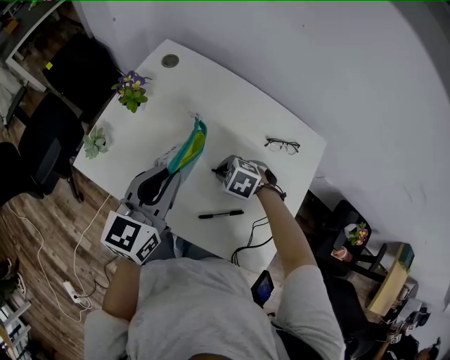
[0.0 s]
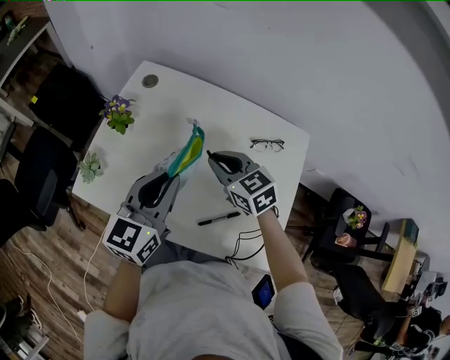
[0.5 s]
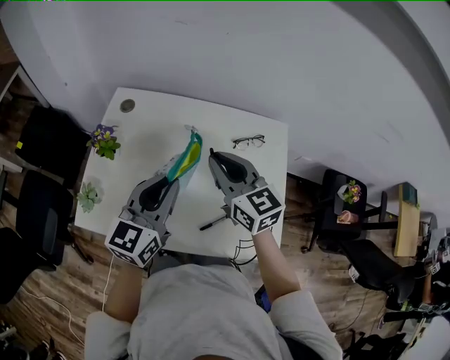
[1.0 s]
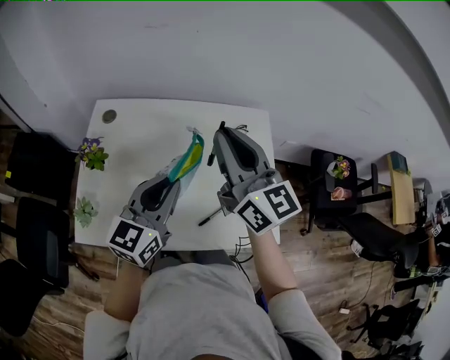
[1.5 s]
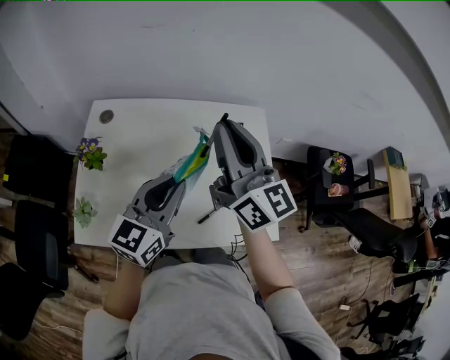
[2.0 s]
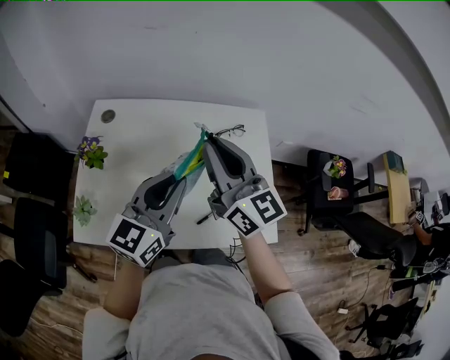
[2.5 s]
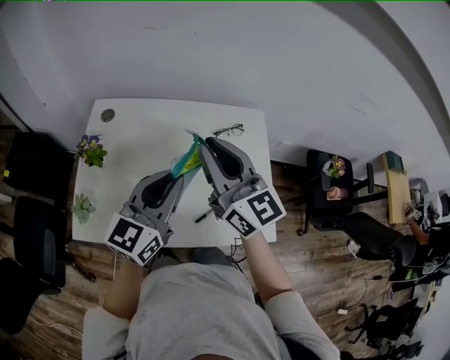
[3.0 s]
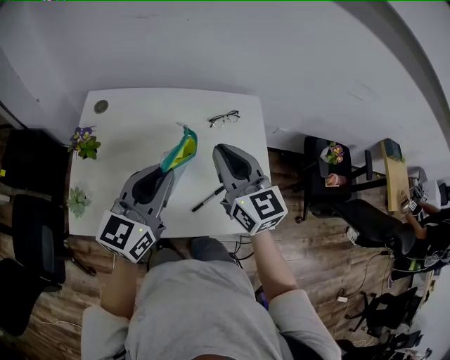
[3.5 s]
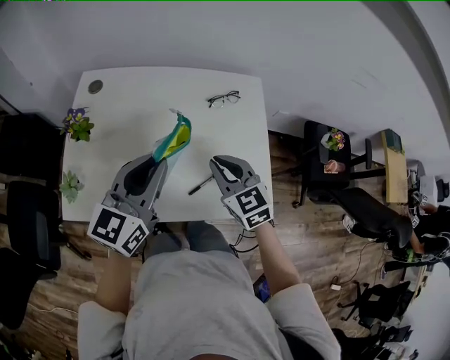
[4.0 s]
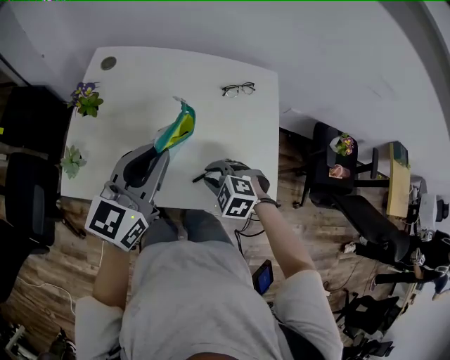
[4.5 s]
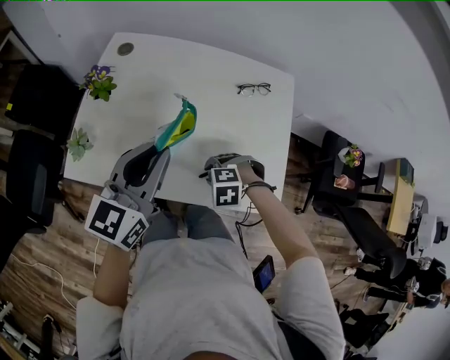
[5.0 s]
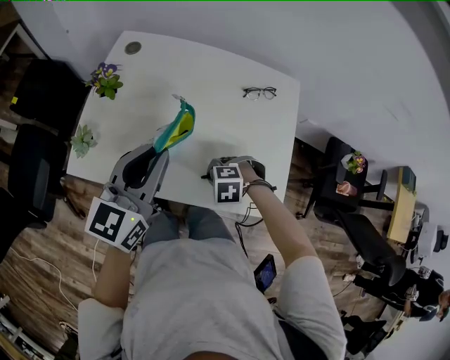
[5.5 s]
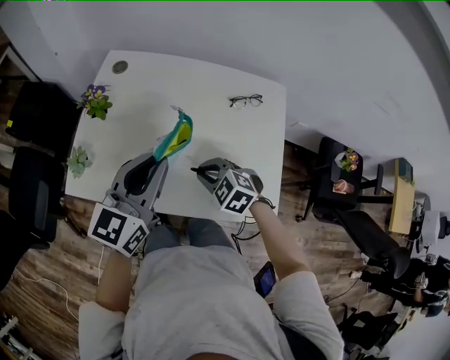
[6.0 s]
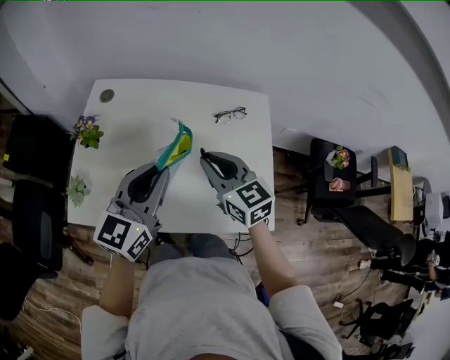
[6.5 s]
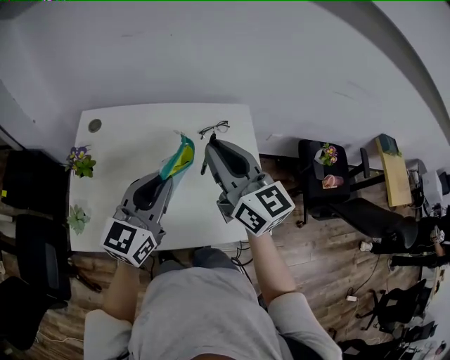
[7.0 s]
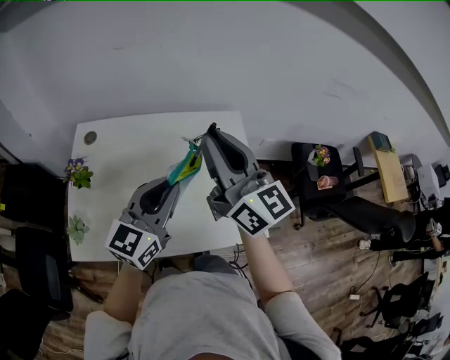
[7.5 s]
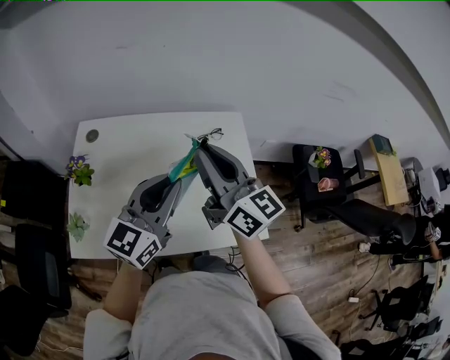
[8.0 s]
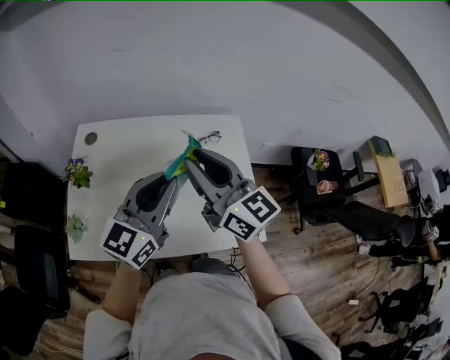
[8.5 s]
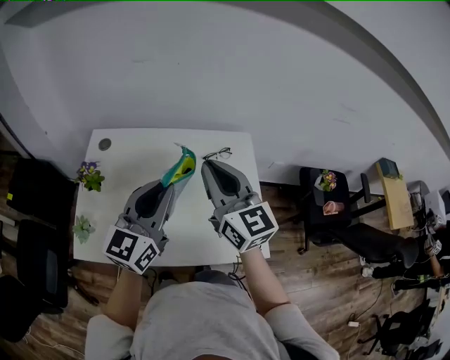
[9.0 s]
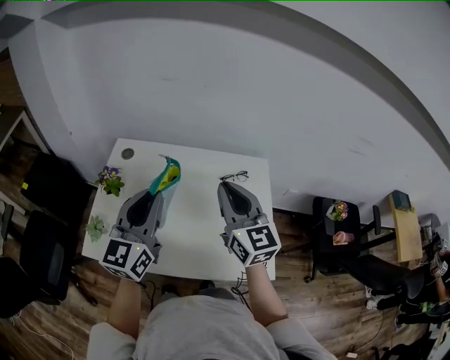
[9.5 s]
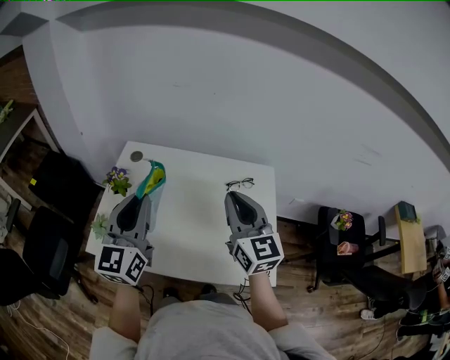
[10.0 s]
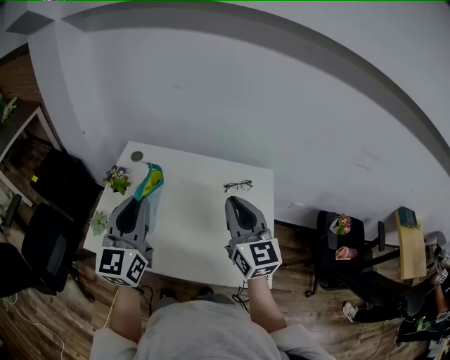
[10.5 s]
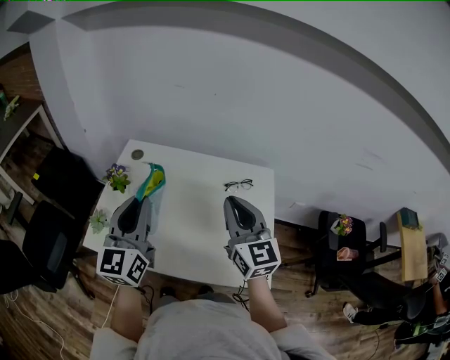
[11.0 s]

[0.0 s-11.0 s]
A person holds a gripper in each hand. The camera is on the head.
0.0 to 2.0 s: The right gripper goes approximately 40 cm upward, and points its fingers about 90 degrees further upward, while the left gripper moves upward, about 5 cm, and turns by approximately 30 degrees.
2.0 to 3.5 s: The right gripper is displaced downward by roughly 10 cm, and rotates about 20 degrees.
3.5 to 5.5 s: The right gripper is displaced downward by some 30 cm, and tilts its fingers about 70 degrees downward. The left gripper shifts by about 5 cm.
5.5 to 7.5 s: The left gripper ends up some 10 cm from where it was, and swivels roughly 20 degrees; the right gripper is displaced upward by roughly 40 cm, and tips its fingers upward by approximately 90 degrees.
7.5 to 9.0 s: The right gripper heads downward, covering approximately 5 cm.
9.0 to 11.0 s: The left gripper shifts approximately 10 cm to the left, and swivels roughly 30 degrees.

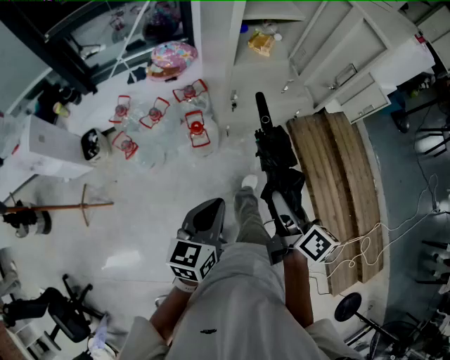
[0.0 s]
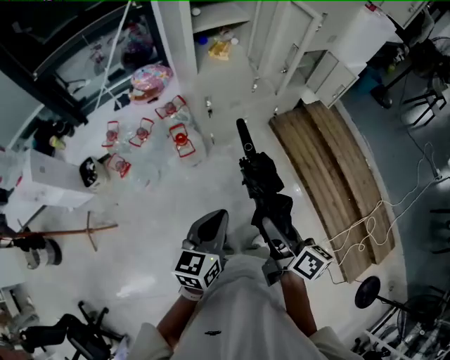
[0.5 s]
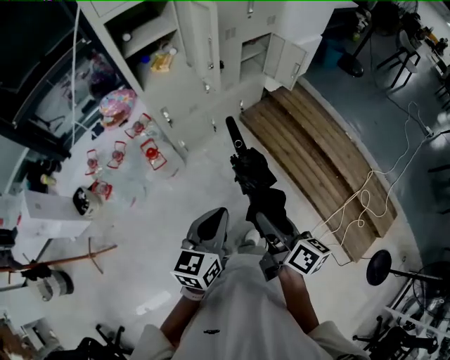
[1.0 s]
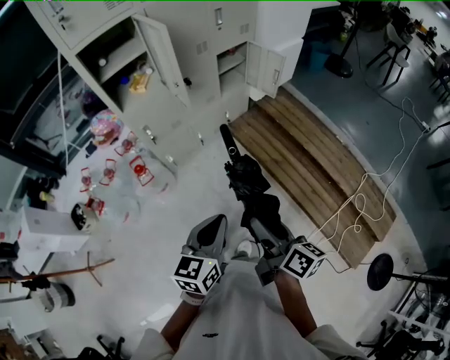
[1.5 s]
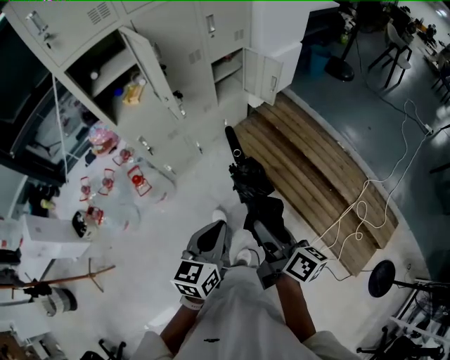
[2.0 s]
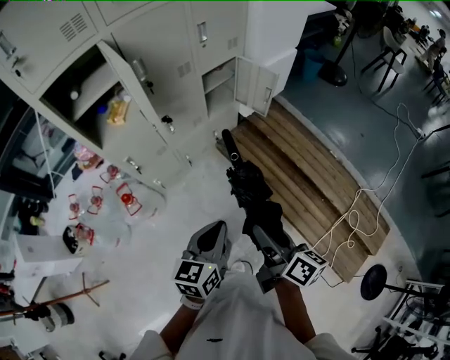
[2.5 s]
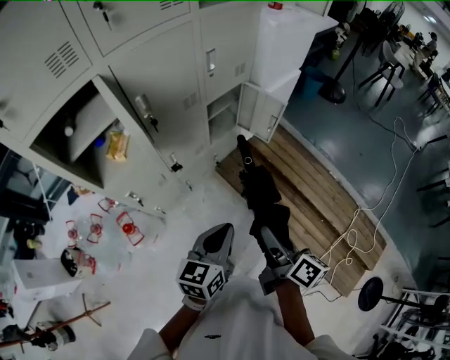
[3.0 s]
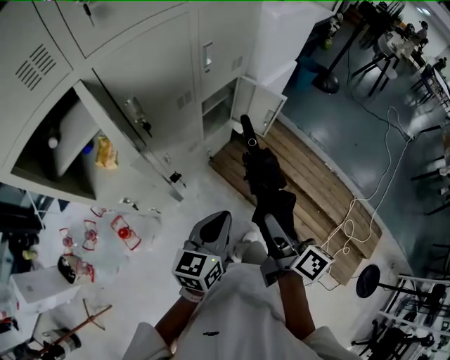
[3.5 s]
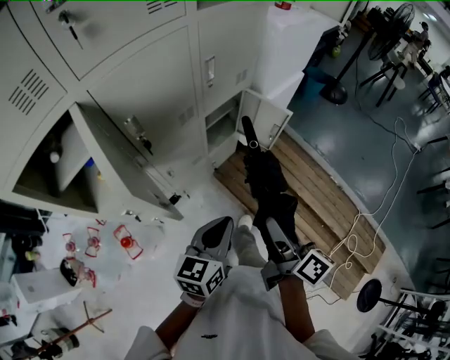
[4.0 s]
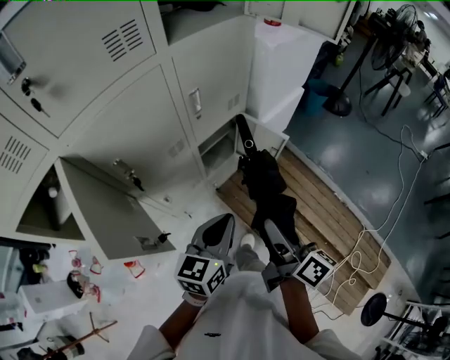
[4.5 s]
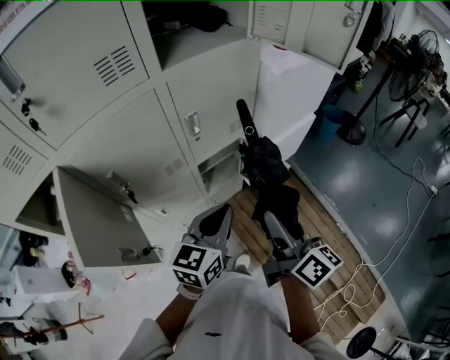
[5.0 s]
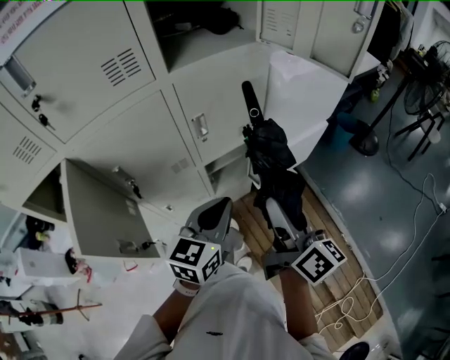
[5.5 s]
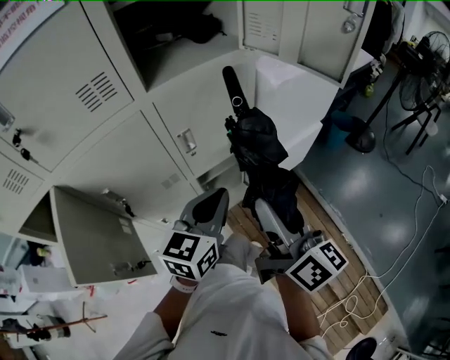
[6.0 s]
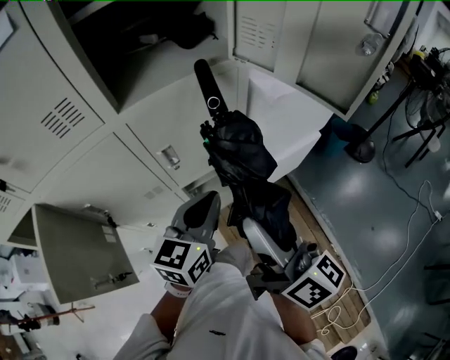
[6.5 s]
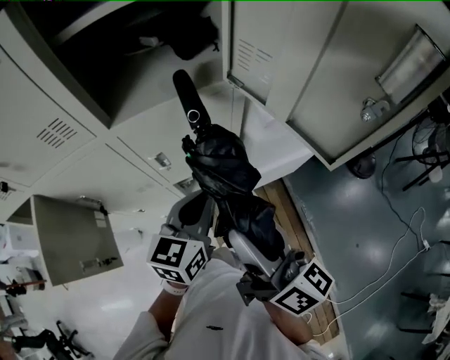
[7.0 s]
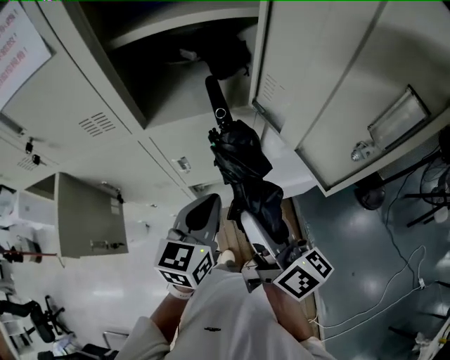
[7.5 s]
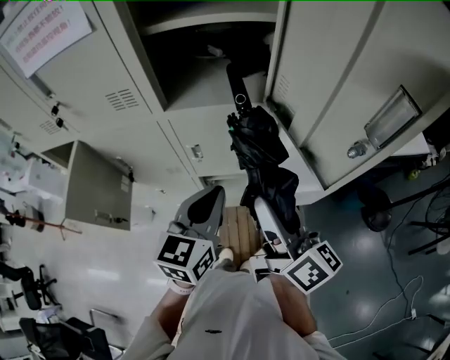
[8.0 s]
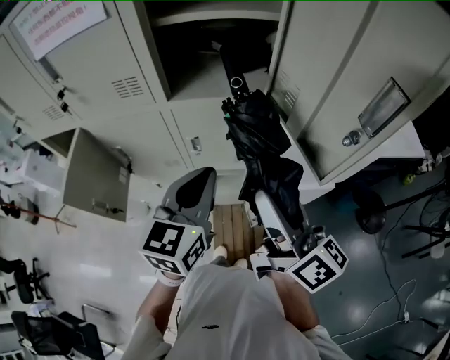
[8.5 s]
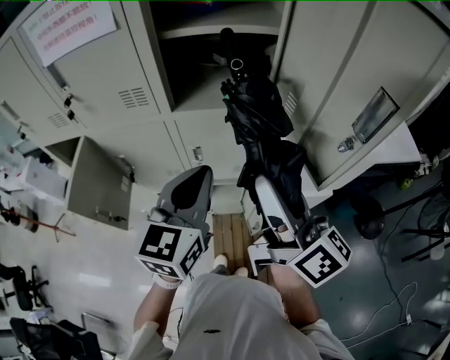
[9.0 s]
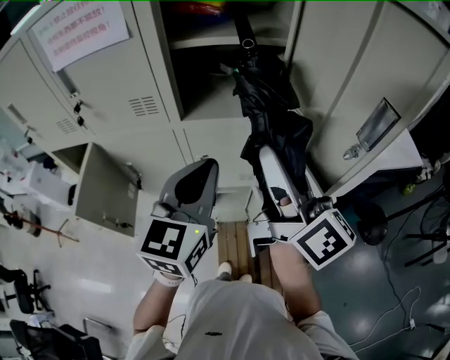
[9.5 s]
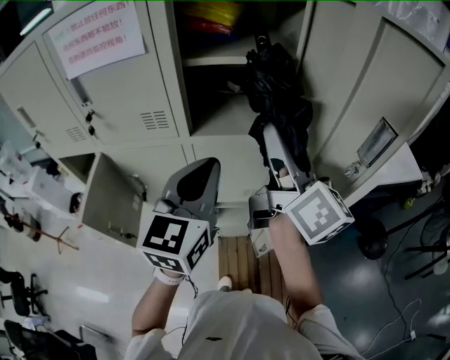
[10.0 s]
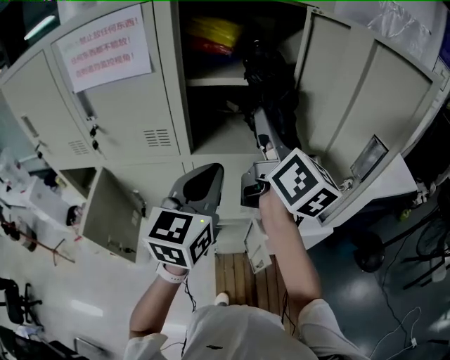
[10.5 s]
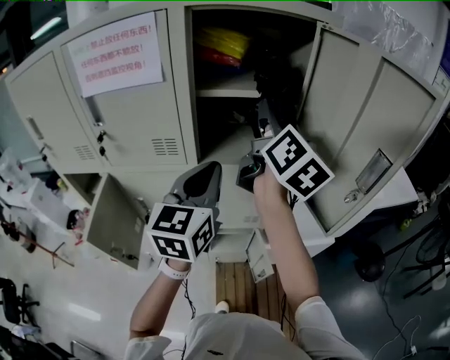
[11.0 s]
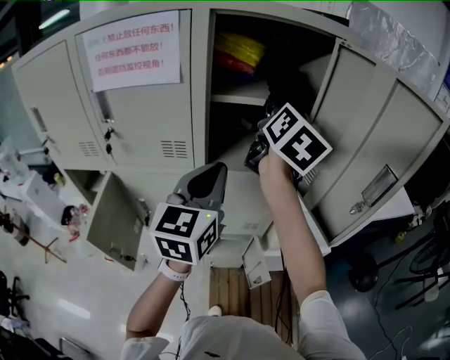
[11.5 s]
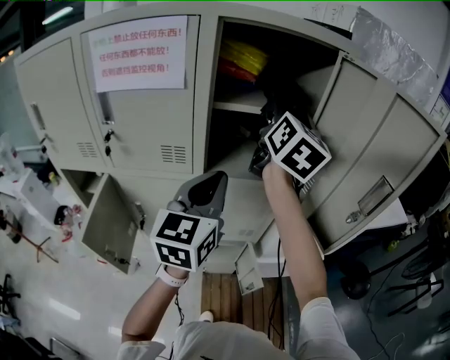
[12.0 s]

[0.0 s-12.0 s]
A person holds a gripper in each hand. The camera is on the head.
0.0 to 2.0 s: Both grippers travel together to the right, approximately 35 cm.
2.0 to 4.0 s: The grippers both shift forward by some 35 cm.
4.0 to 6.0 s: The grippers both shift forward and upward by some 30 cm. The right gripper changes its angle by approximately 30 degrees.
6.0 to 8.0 s: The left gripper is displaced upward by about 10 cm, and rotates approximately 30 degrees; the right gripper ends up about 20 cm from where it was, and swivels approximately 30 degrees.
8.0 to 10.0 s: The right gripper heads upward and forward, covering roughly 20 cm, while the left gripper shifts approximately 15 cm upward.
10.0 to 12.0 s: The right gripper goes about 15 cm forward and upward, and swivels roughly 30 degrees, while the left gripper ends up about 5 cm from where it was.

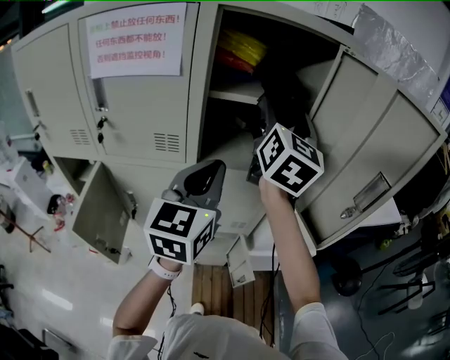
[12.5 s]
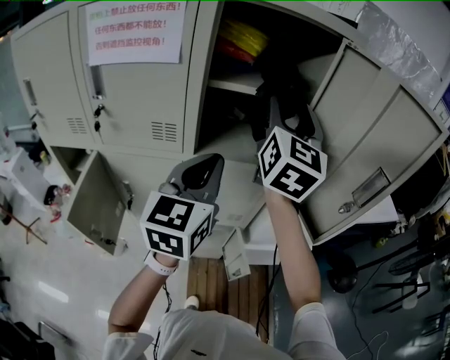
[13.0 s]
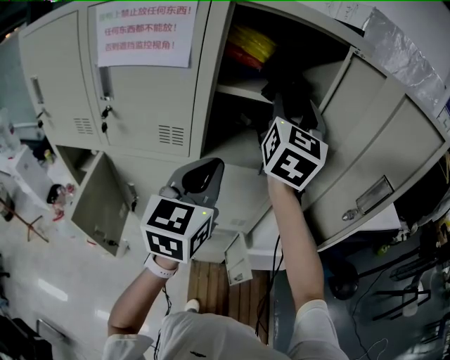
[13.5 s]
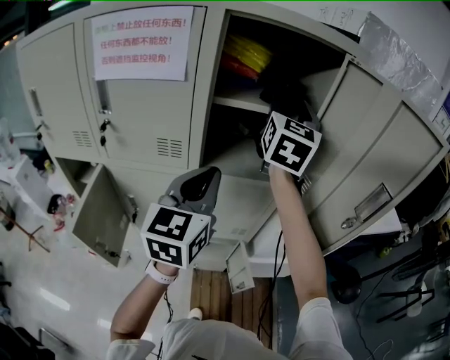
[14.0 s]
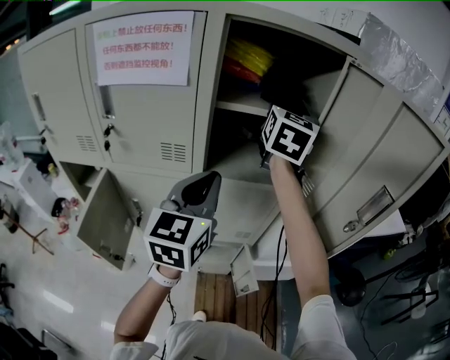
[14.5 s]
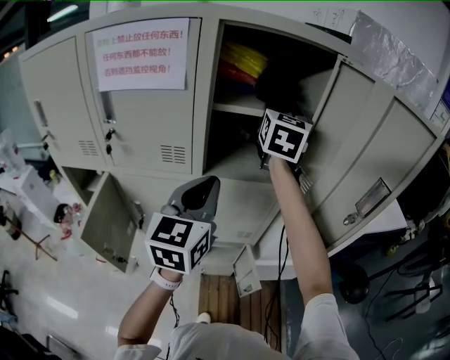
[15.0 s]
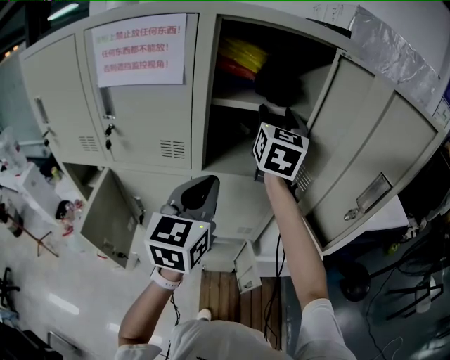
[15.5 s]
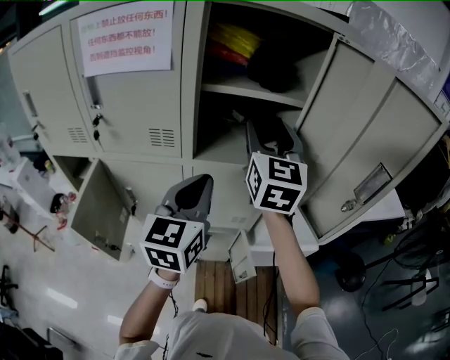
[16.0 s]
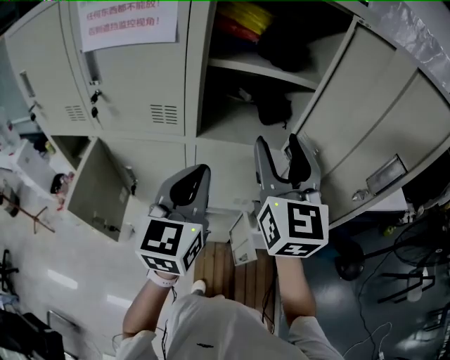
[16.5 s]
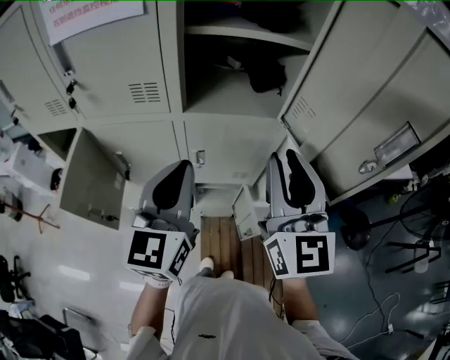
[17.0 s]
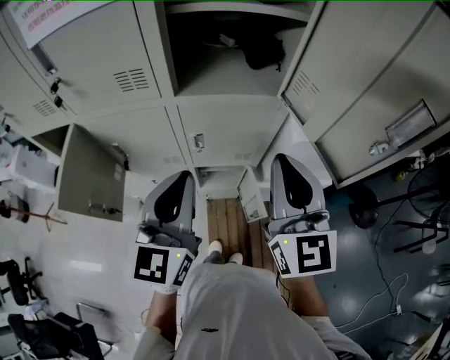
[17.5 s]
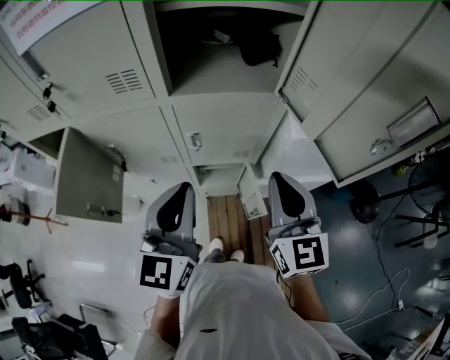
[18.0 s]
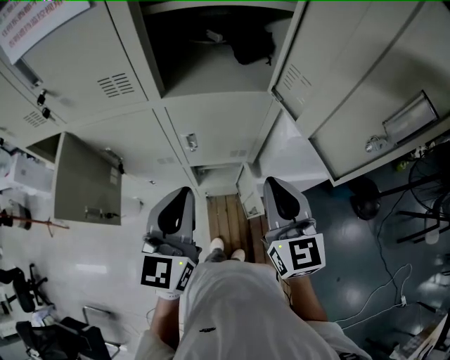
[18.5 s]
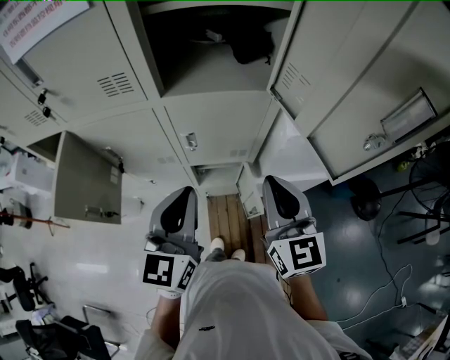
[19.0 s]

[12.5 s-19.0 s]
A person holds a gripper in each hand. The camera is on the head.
12.5 to 14.5 s: The right gripper goes about 5 cm forward.
14.5 to 17.0 s: The left gripper shifts approximately 10 cm backward and downward; the right gripper is displaced backward and downward by approximately 30 cm, and closes up.
17.0 to 19.0 s: The right gripper is displaced downward by roughly 15 cm; the left gripper heads downward, covering roughly 10 cm.
